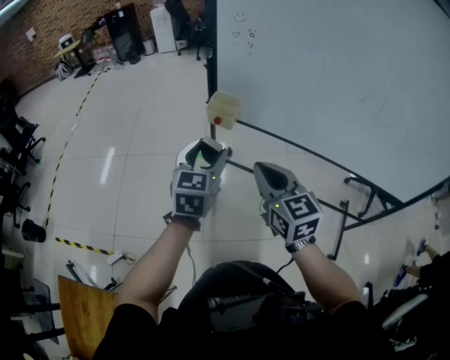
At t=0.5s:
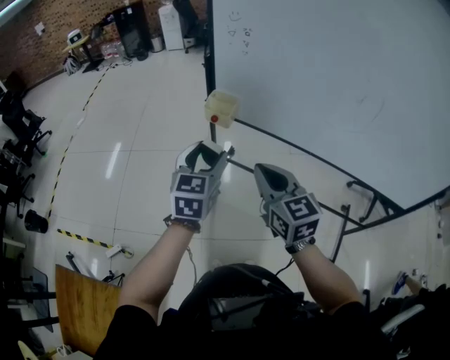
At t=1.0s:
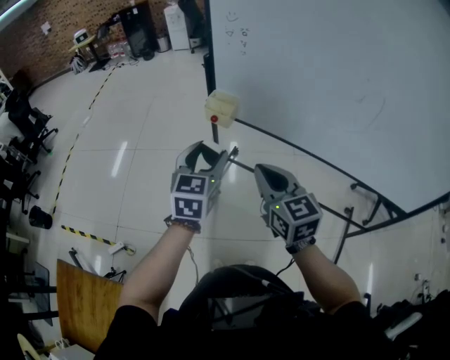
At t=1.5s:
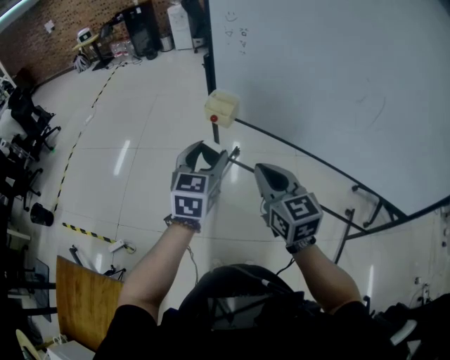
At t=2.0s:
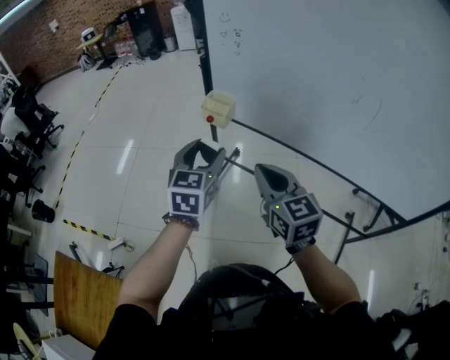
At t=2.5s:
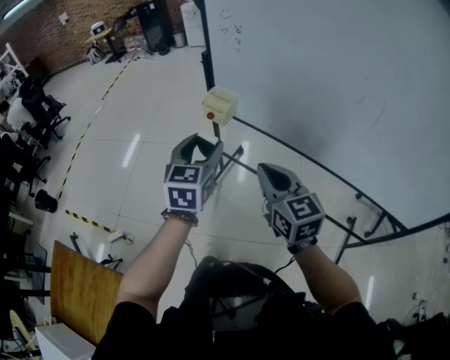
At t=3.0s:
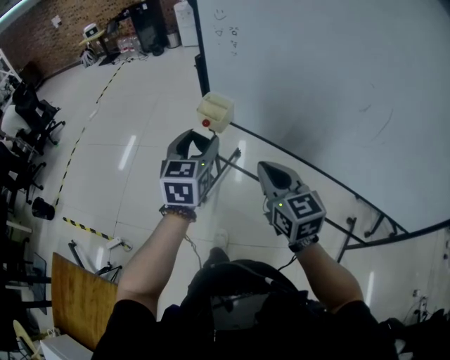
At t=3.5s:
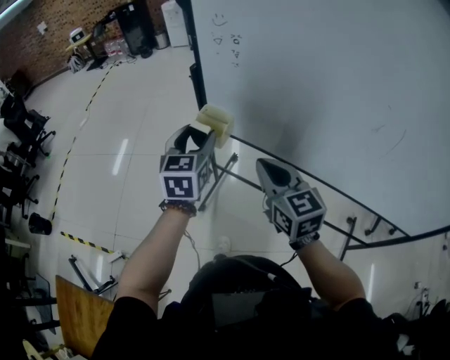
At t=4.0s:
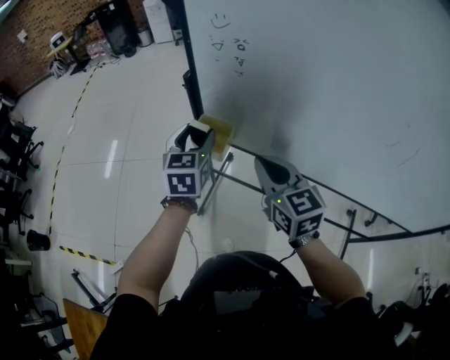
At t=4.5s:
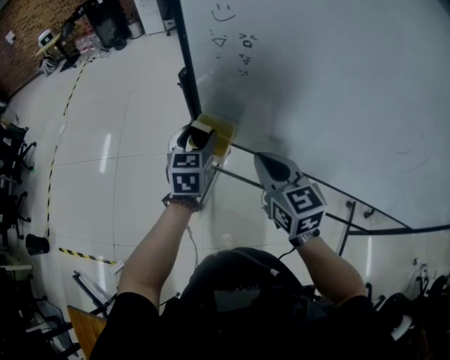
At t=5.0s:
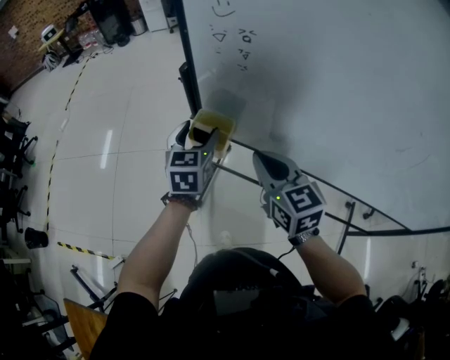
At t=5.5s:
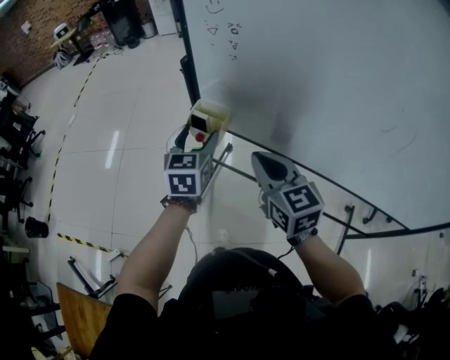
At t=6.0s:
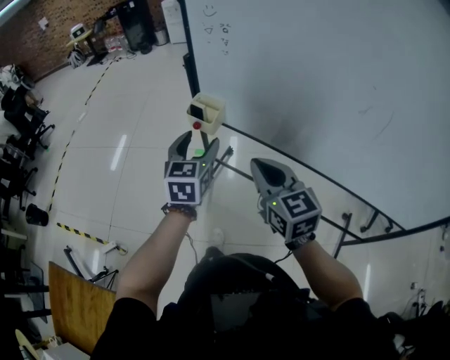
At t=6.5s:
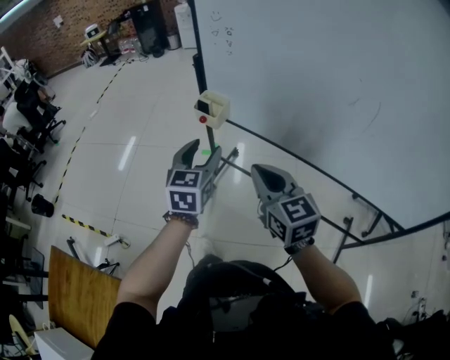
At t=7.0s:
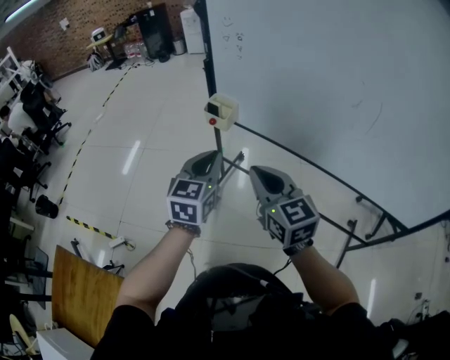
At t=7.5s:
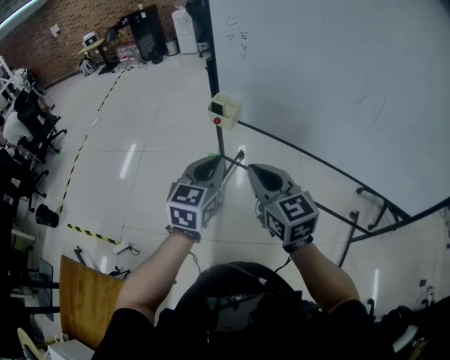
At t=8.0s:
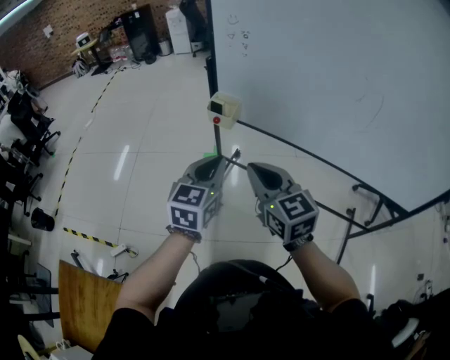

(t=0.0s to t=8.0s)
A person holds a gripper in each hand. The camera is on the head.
t=0.0s - t=2.0s: Both grippers move to the right, approximately 5 cm.
t=2.0s - t=4.0s: Both grippers travel together forward, some 25 cm.
t=4.0s - t=6.0s: Both grippers travel together backward, approximately 15 cm.
t=6.0s - t=8.0s: The left gripper shifts roughly 15 cm backward, and closes its fingers. The right gripper travels to the left and backward by some 10 cm.

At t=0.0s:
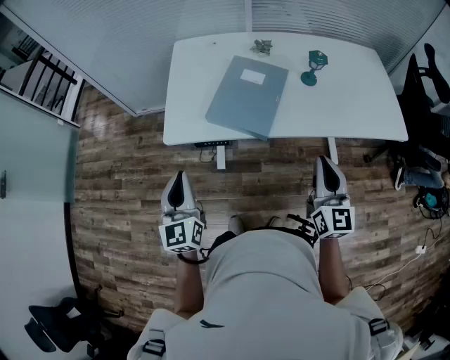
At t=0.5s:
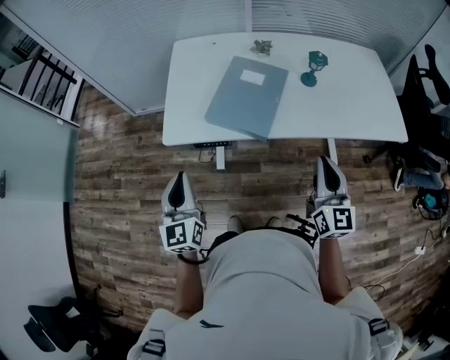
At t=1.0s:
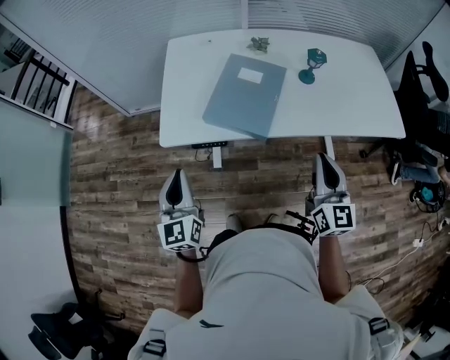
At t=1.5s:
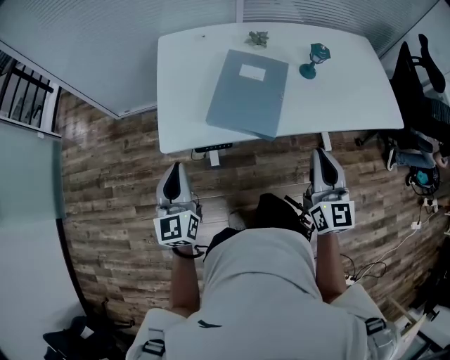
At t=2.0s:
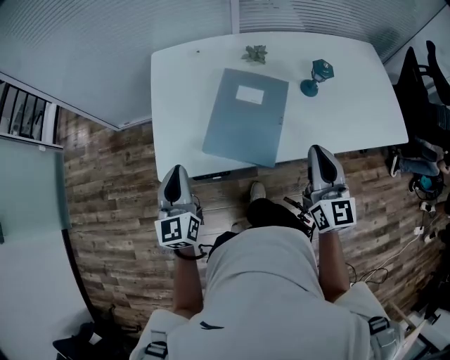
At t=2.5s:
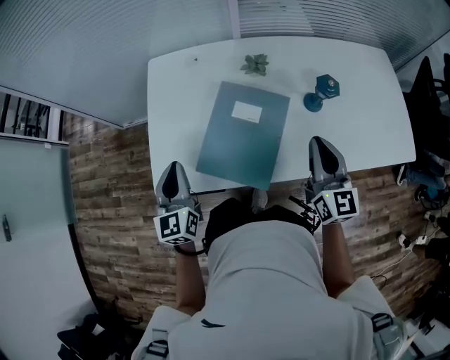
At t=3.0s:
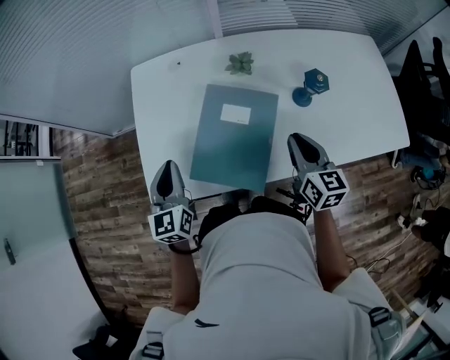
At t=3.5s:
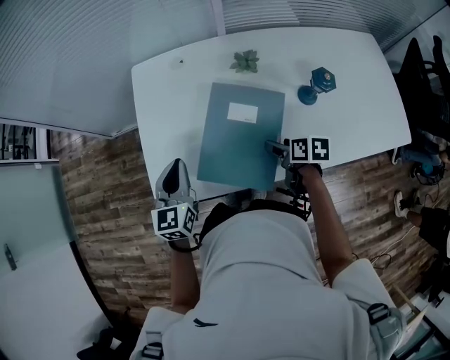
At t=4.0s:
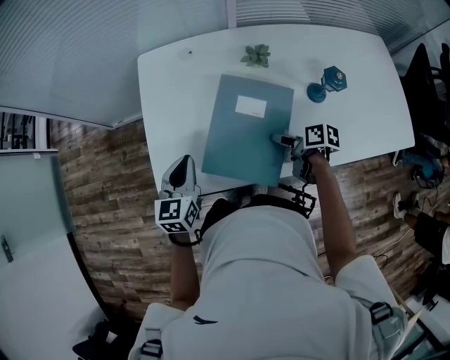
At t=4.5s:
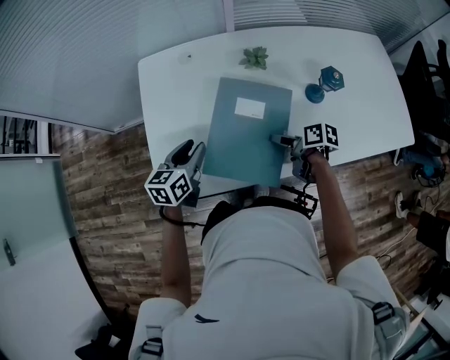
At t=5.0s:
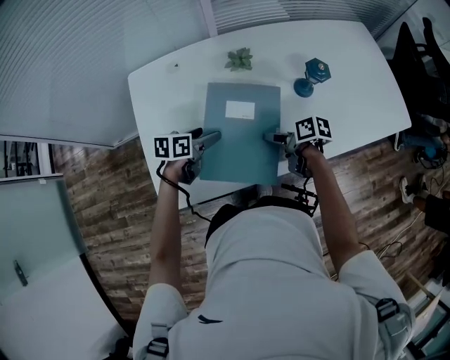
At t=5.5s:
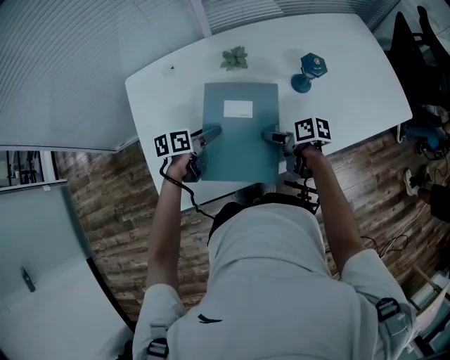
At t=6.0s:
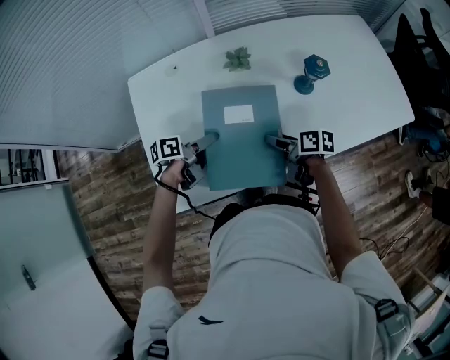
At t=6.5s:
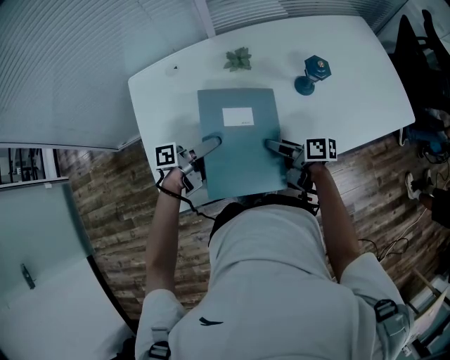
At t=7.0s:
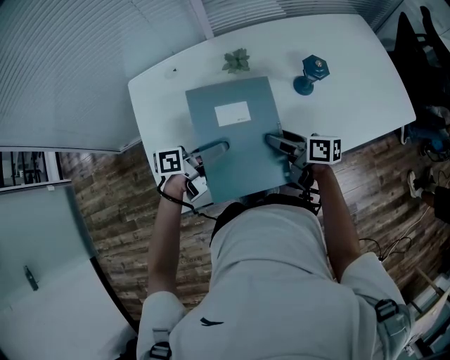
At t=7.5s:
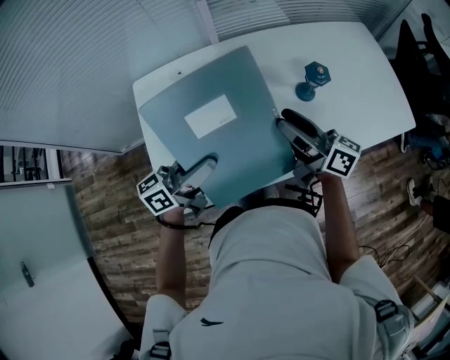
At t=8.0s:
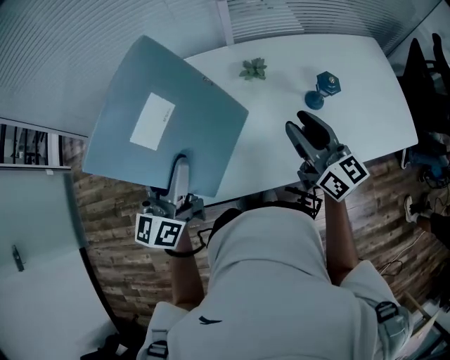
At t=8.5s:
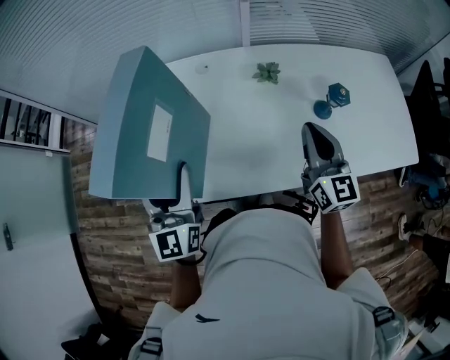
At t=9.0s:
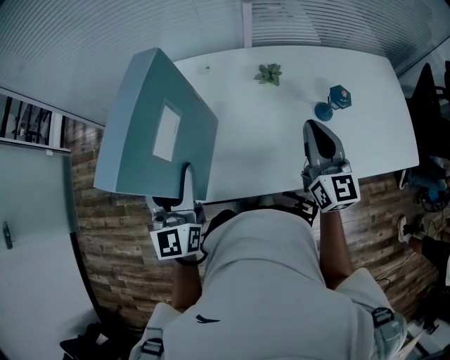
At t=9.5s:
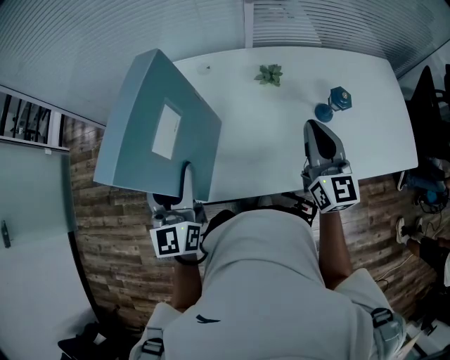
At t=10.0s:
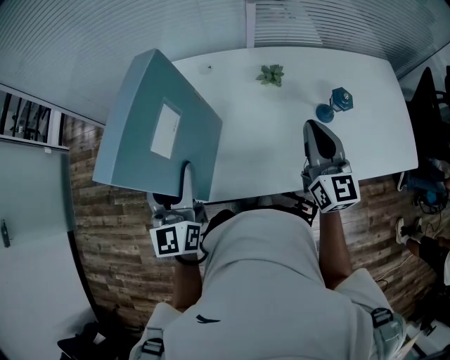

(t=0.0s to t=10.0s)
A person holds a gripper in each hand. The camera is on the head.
t=0.0s - t=2.0s: The grippers both shift forward by roughly 15 cm.
t=2.0s - t=4.0s: The right gripper shifts some 25 cm downward and forward, tilts its fingers approximately 40 degrees downward, and opens its fingers, while the left gripper moves forward and downward, some 15 cm, and changes its angle by approximately 20 degrees.
t=4.0s - t=6.0s: The left gripper shifts by approximately 15 cm, rotates approximately 70 degrees, and opens.
t=6.0s - t=8.0s: Both grippers move upward, roughly 25 cm. The left gripper points its fingers some 30 degrees further upward, while the right gripper points its fingers approximately 30 degrees further upward, and closes.
t=8.0s - t=10.0s: The right gripper turns by roughly 20 degrees, and closes its fingers; the left gripper moves roughly 5 cm, and swivels about 30 degrees.

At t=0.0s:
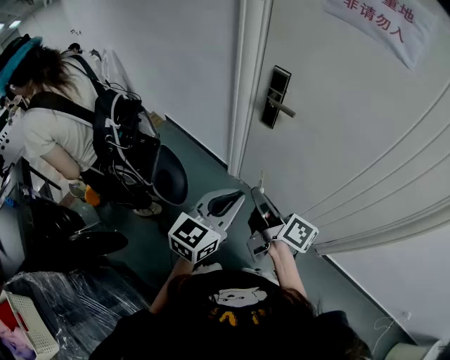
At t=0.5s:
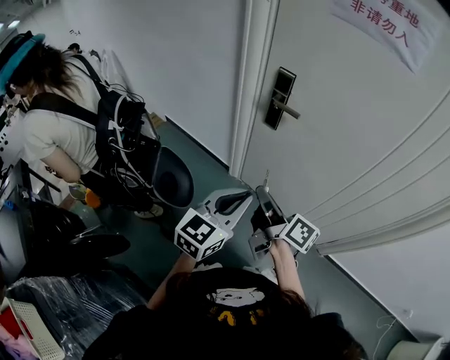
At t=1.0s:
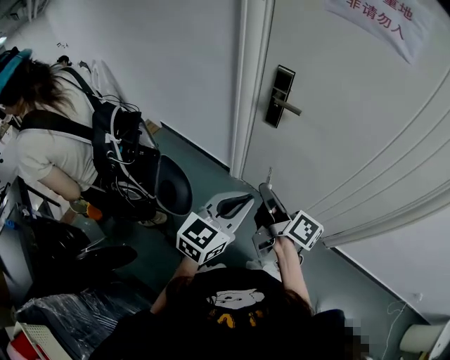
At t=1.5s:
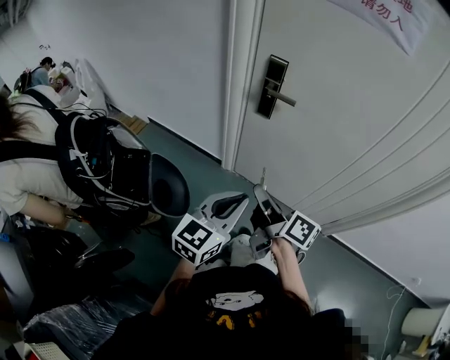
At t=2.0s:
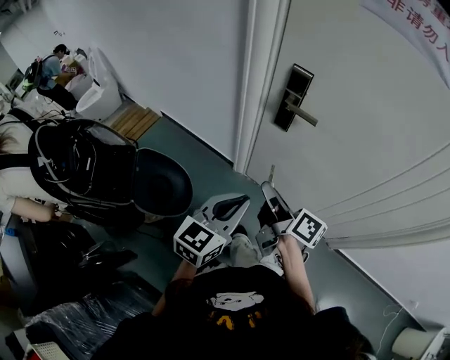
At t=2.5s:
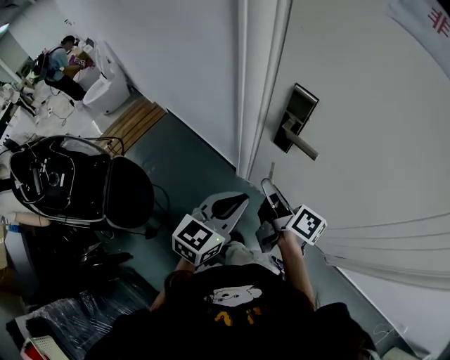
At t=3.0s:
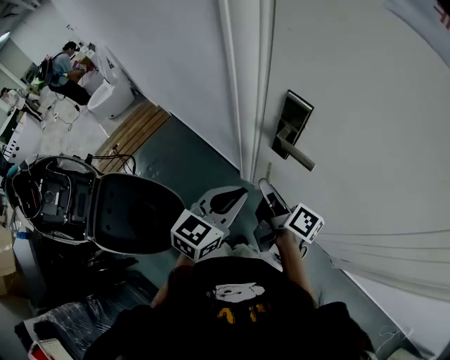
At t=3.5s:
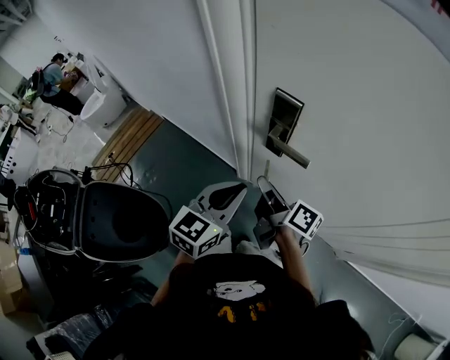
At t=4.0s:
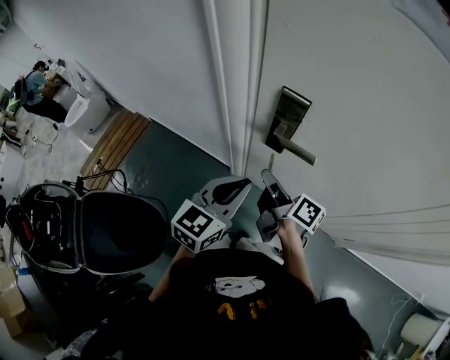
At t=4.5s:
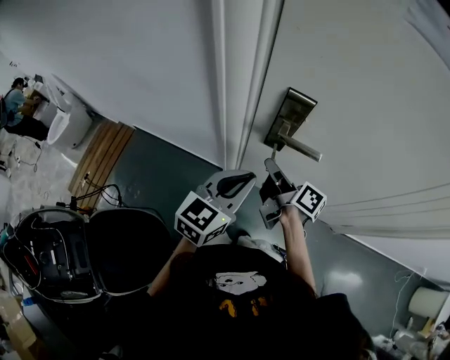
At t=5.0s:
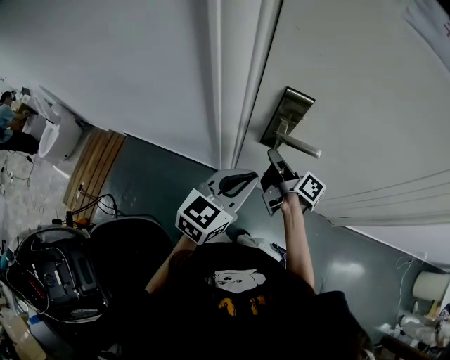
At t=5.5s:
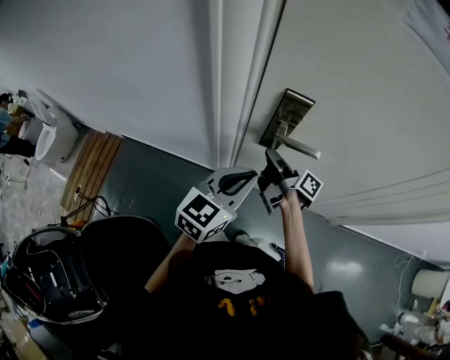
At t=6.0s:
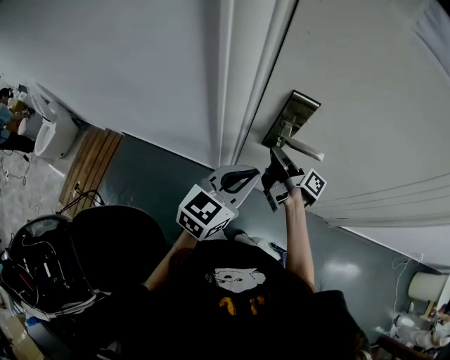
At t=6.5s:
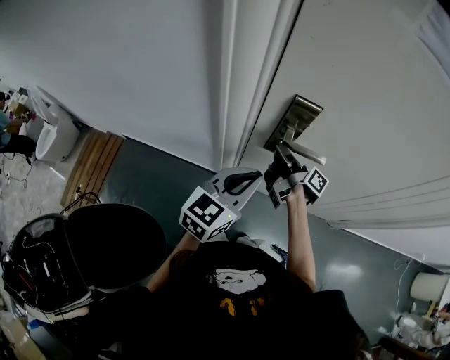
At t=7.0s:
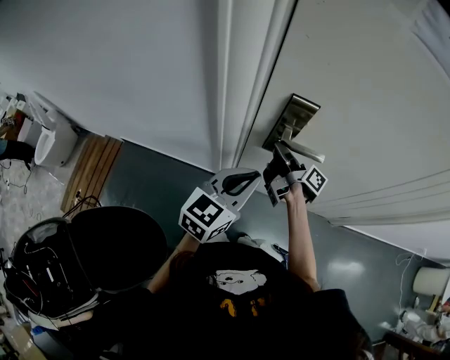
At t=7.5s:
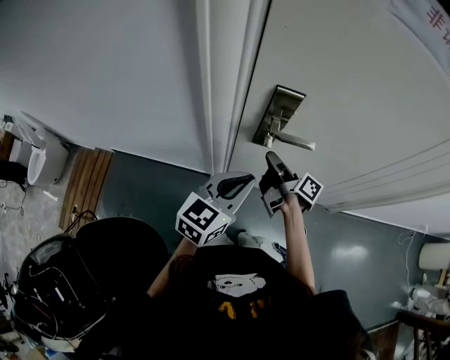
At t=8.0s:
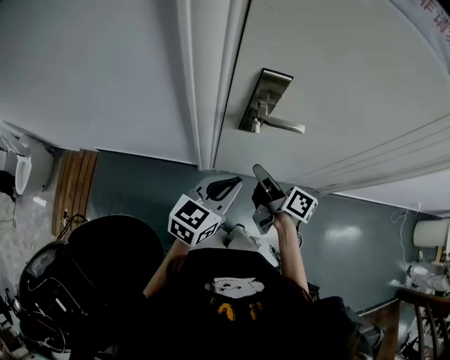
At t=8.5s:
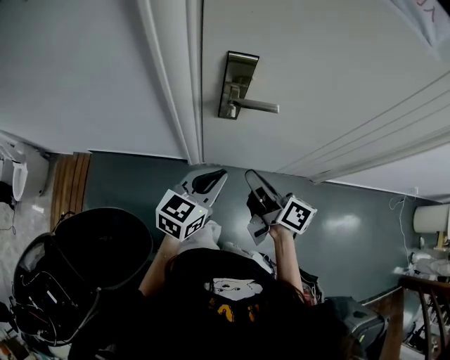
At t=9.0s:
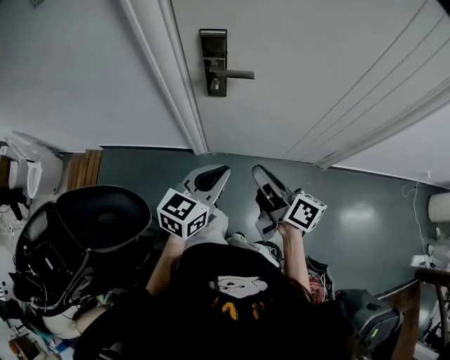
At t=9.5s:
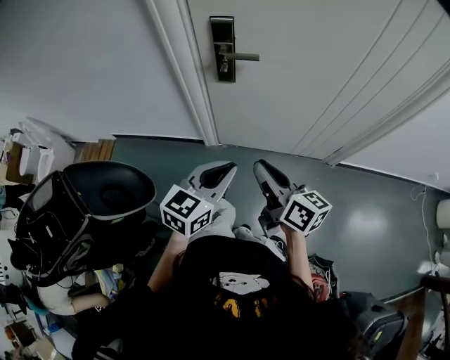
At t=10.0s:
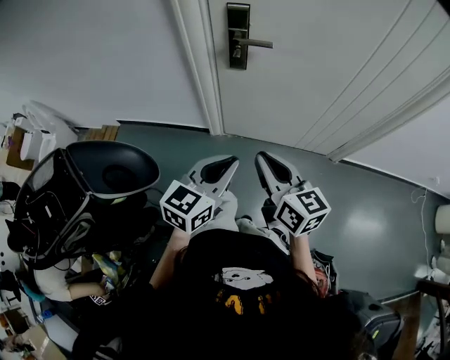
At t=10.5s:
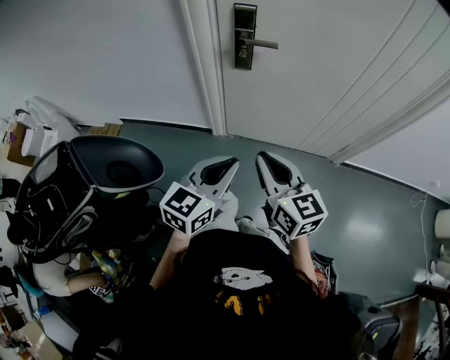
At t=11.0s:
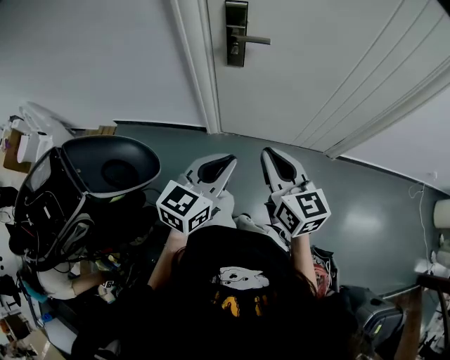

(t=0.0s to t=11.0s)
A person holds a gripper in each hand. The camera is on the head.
t=0.0s - t=2.0s: The right gripper heads forward, covering some 10 cm; the left gripper is displaced forward, to the left and downward by about 10 cm.
t=2.0s - t=3.5s: The grippers both shift forward by about 20 cm.
t=3.5s - t=5.5s: The left gripper moves some 5 cm, and swivels approximately 30 degrees. Meanwhile the right gripper heads forward, covering roughly 10 cm, and turns by about 30 degrees.
t=5.5s - t=7.5s: The grippers move only a little.
t=7.5s - t=9.0s: The right gripper shifts roughly 30 cm backward and to the right, and swivels roughly 30 degrees. The left gripper moves backward and to the right, approximately 20 cm.
t=9.0s - t=11.0s: The grippers both shift backward by approximately 10 cm. The right gripper rotates around the line of its fingers by some 40 degrees, counterclockwise from behind.
